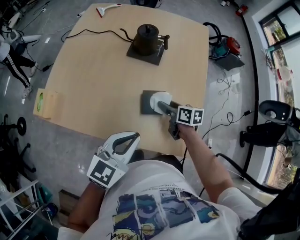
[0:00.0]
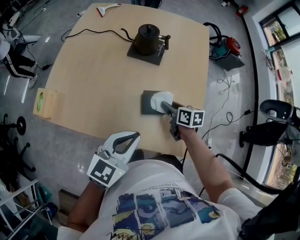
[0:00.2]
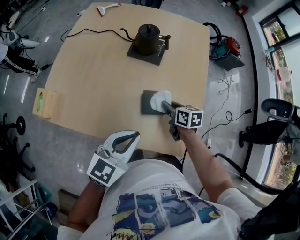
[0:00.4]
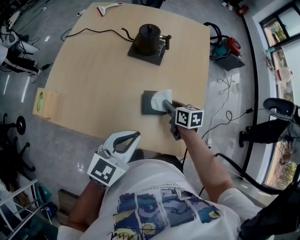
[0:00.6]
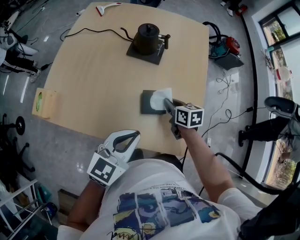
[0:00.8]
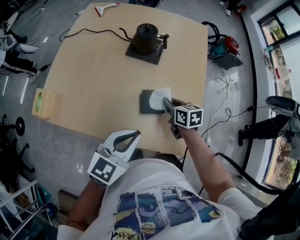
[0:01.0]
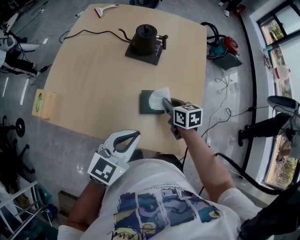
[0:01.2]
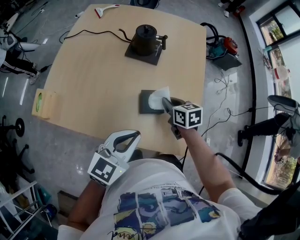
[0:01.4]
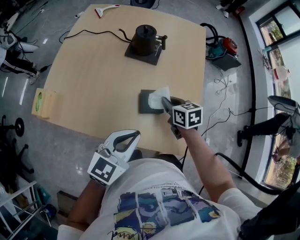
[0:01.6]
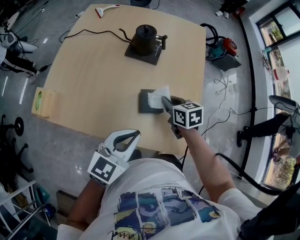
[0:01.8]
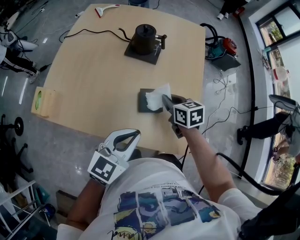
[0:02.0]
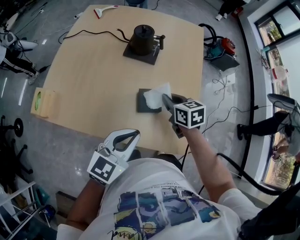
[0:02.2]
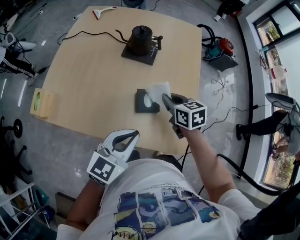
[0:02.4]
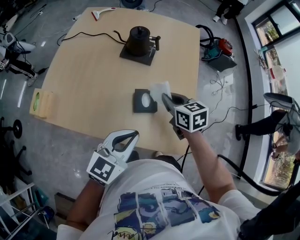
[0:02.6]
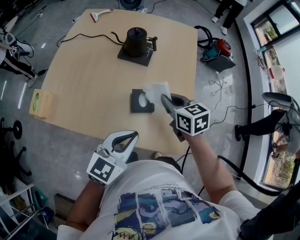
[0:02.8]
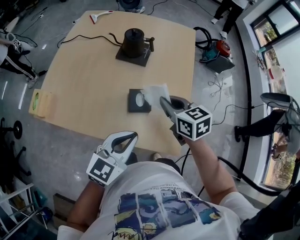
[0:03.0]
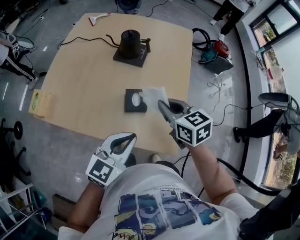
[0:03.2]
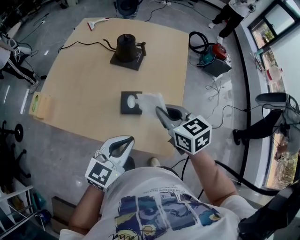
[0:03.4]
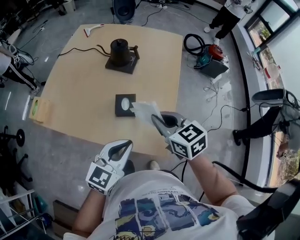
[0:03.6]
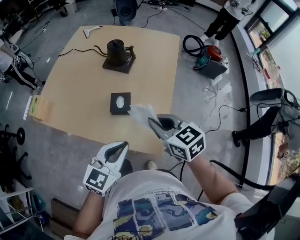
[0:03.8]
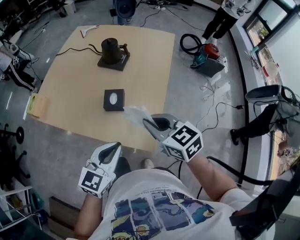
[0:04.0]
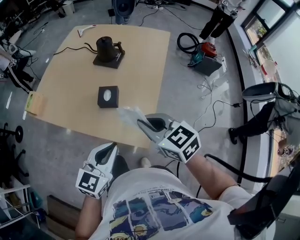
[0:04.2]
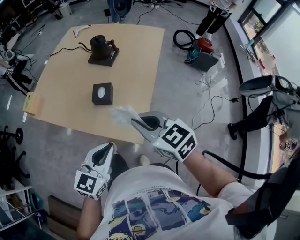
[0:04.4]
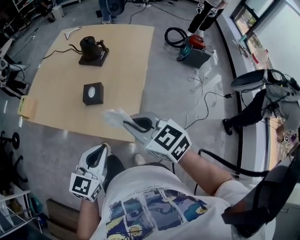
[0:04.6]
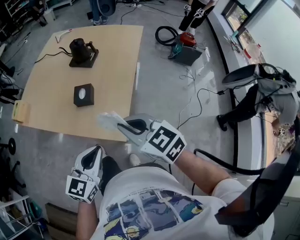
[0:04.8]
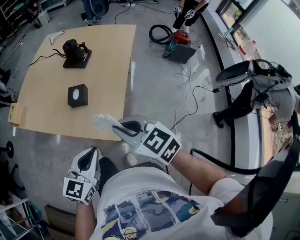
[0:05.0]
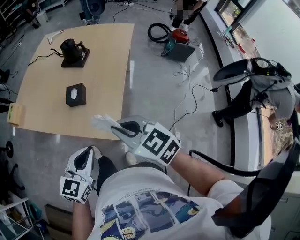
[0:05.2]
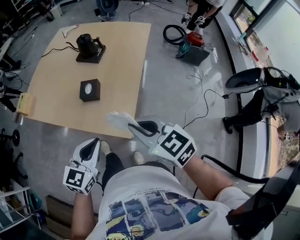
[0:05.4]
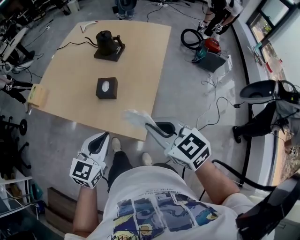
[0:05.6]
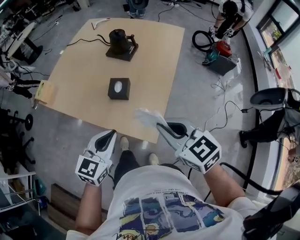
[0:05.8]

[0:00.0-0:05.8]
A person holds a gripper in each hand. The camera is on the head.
0:00.0 to 0:01.4: The right gripper swivels approximately 20 degrees, and closes its fingers.
0:01.4 to 0:02.8: The right gripper travels upward by roughly 10 cm.
0:02.8 to 0:04.4: The right gripper goes roughly 25 cm backward, to the right and upward, and changes its angle by some 30 degrees. Meanwhile the left gripper goes about 20 cm backward and to the right.
0:04.4 to 0:05.8: The left gripper moves roughly 5 cm.

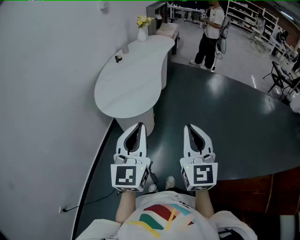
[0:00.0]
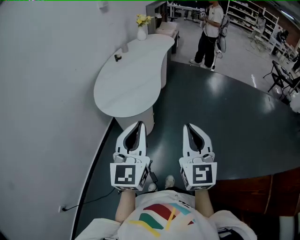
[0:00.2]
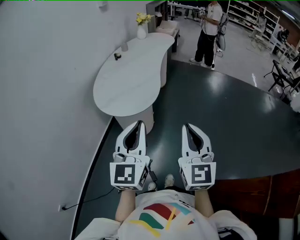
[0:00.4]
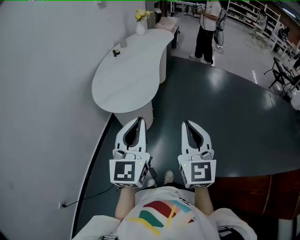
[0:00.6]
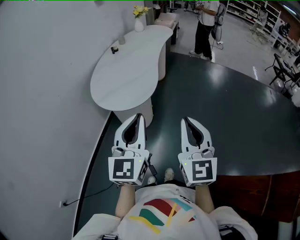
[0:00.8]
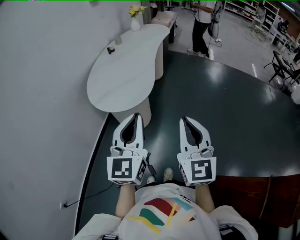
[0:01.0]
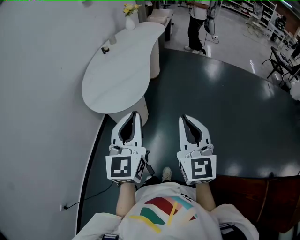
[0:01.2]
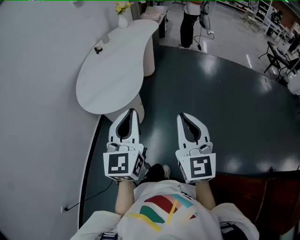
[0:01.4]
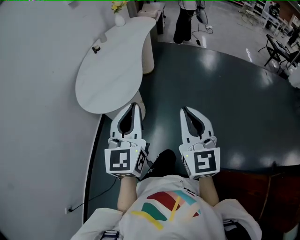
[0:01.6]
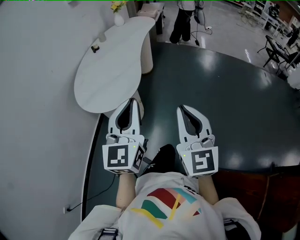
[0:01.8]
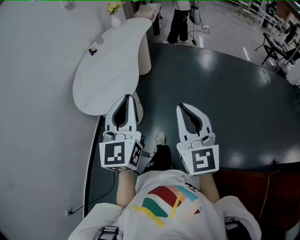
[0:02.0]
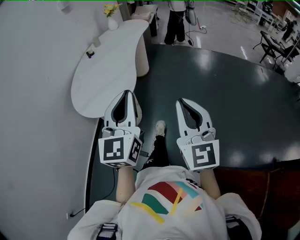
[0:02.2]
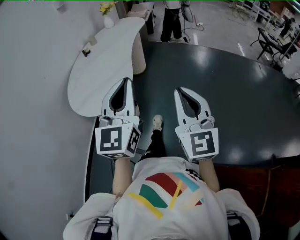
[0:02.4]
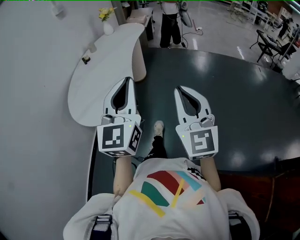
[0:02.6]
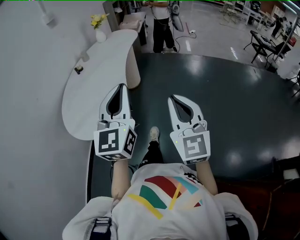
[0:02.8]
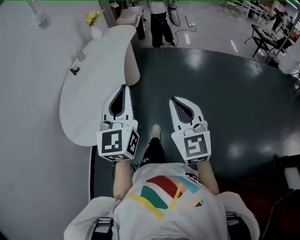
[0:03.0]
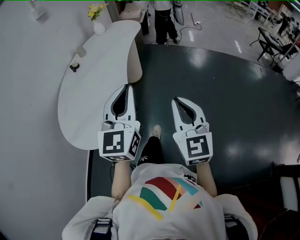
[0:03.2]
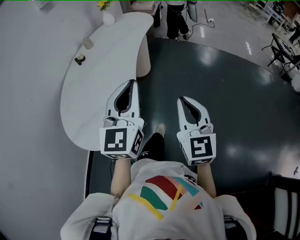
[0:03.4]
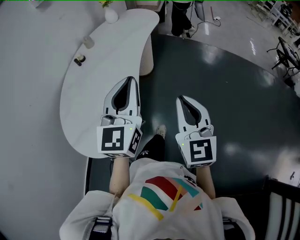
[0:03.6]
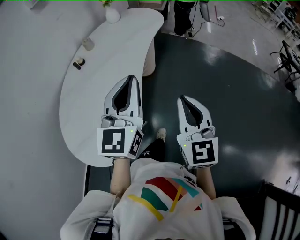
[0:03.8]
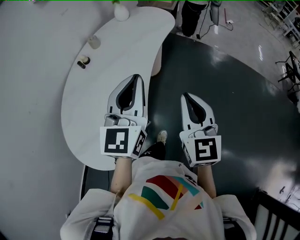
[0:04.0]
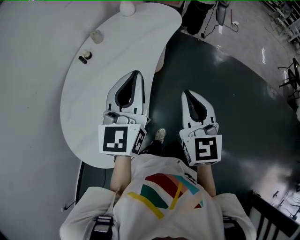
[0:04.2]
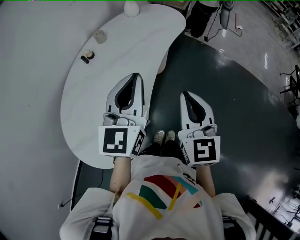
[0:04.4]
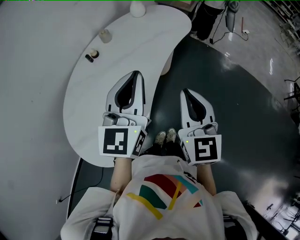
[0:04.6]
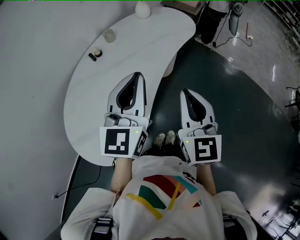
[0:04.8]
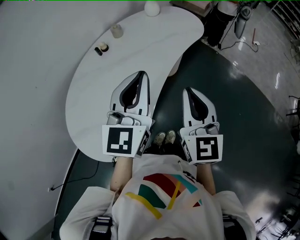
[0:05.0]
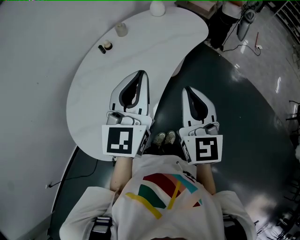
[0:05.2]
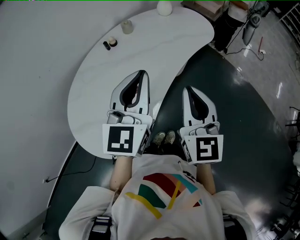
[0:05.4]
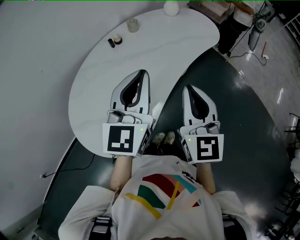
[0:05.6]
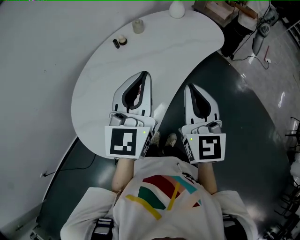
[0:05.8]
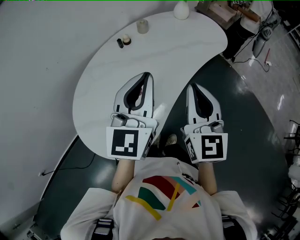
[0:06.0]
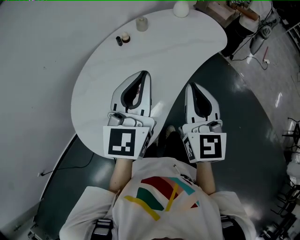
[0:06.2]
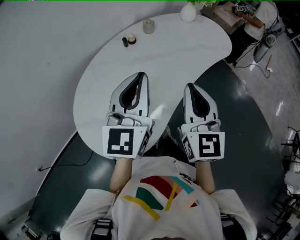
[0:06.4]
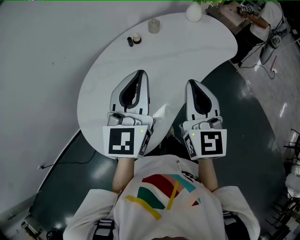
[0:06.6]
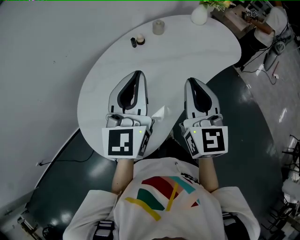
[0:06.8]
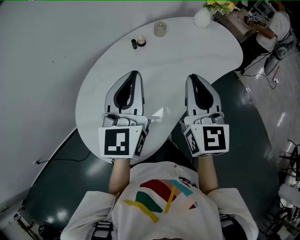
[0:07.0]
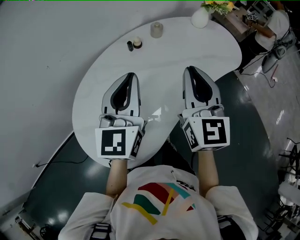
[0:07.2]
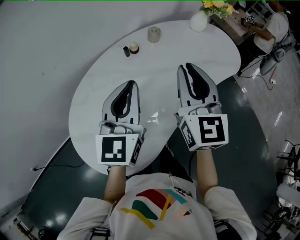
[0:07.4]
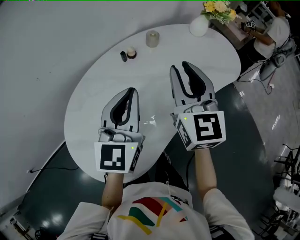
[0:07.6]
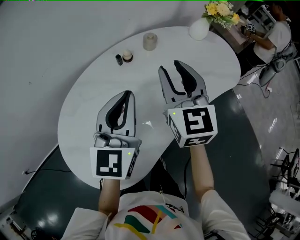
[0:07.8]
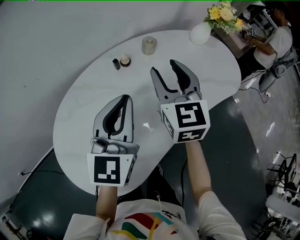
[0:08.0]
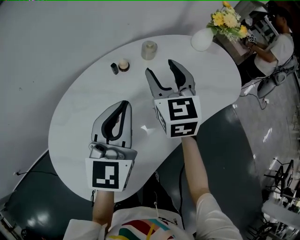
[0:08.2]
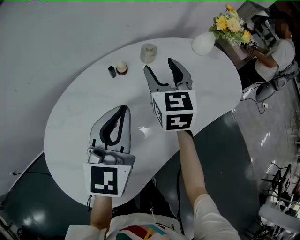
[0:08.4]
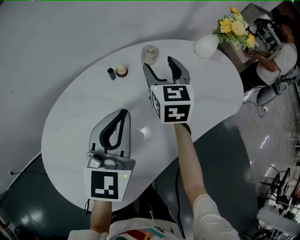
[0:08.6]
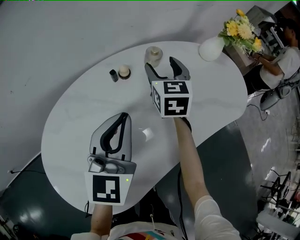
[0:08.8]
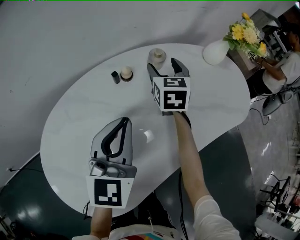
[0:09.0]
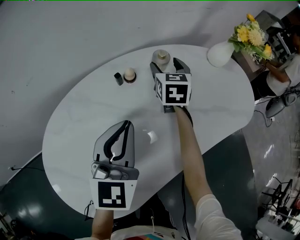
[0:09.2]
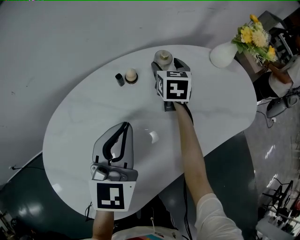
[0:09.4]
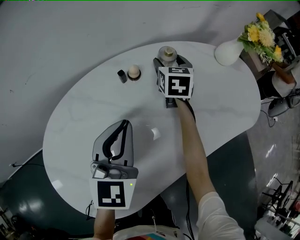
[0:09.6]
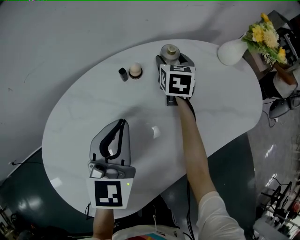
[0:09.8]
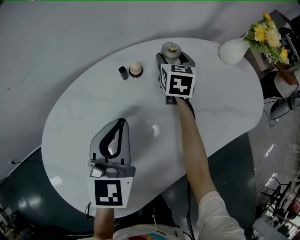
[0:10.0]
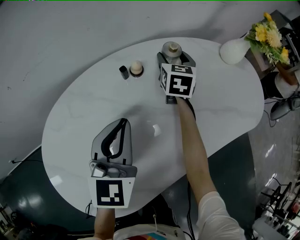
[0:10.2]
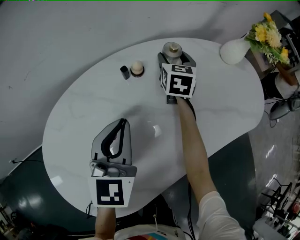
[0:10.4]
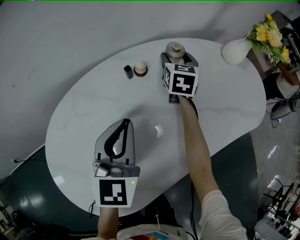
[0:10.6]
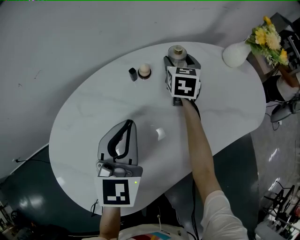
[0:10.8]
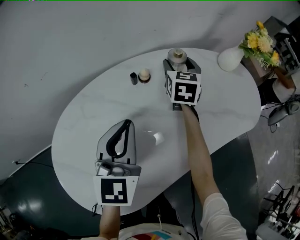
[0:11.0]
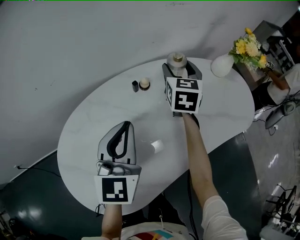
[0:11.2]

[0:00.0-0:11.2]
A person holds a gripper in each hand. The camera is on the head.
0:00.0 to 0:01.6: The left gripper heads to the right and forward, covering some 10 cm. Meanwhile the right gripper is displaced to the right by about 10 cm.
0:01.6 to 0:03.2: Both grippers travel together forward, some 25 cm.
0:03.2 to 0:04.8: Both grippers travel together forward, some 30 cm. The right gripper turns by about 20 degrees.
0:04.8 to 0:06.4: The left gripper is displaced to the left by roughly 10 cm. Meanwhile the right gripper shifts some 10 cm to the left and forward.
0:06.4 to 0:08.0: The left gripper travels forward and downward by roughly 15 cm. Meanwhile the right gripper shifts roughly 25 cm forward, and opens.
0:08.0 to 0:09.6: The left gripper moves downward, approximately 10 cm. The right gripper travels forward and downward by about 30 cm, and opens.
0:09.6 to 0:11.2: The left gripper is displaced upward by roughly 5 cm; the right gripper travels upward by approximately 15 cm.

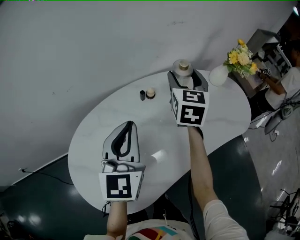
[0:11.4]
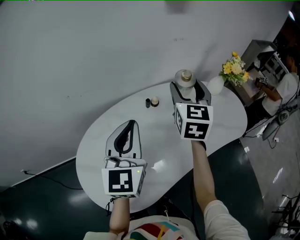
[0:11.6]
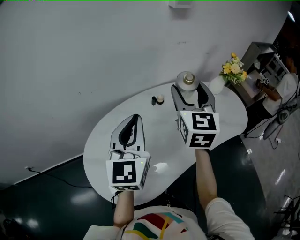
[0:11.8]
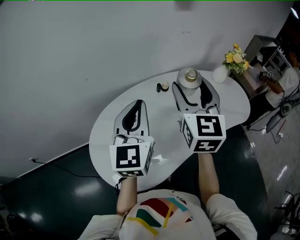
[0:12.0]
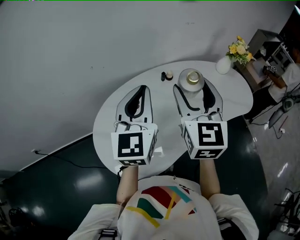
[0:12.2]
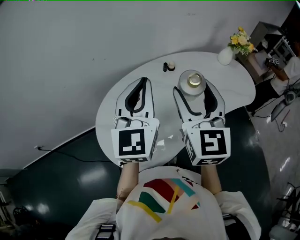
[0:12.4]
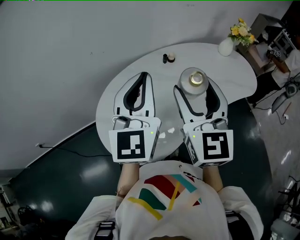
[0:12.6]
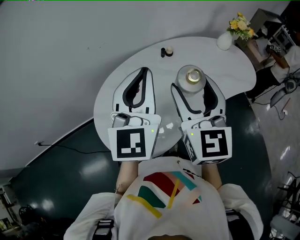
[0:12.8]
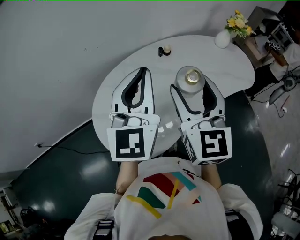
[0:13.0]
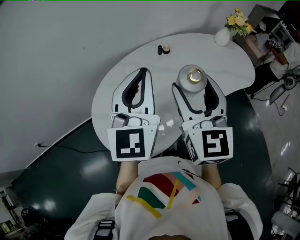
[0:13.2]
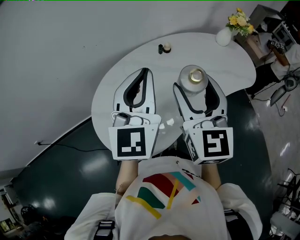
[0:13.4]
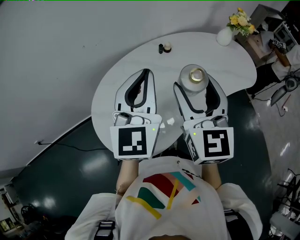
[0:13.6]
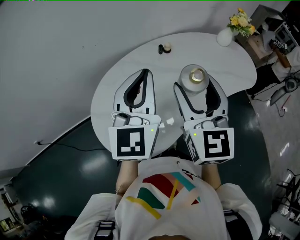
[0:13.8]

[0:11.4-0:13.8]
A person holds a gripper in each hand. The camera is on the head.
0:11.4 to 0:12.6: The left gripper shifts approximately 20 cm upward and backward; the right gripper is displaced backward and upward by roughly 35 cm.
0:12.6 to 0:13.8: The grippers move only a little.

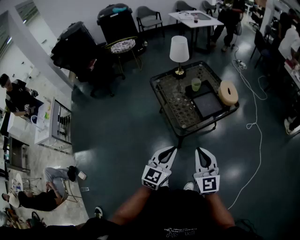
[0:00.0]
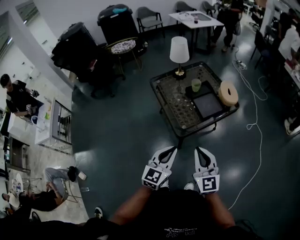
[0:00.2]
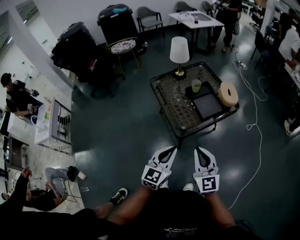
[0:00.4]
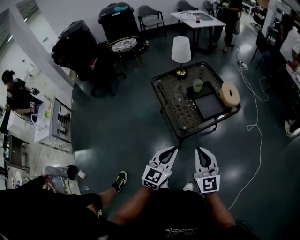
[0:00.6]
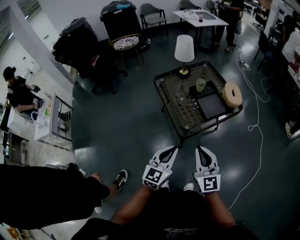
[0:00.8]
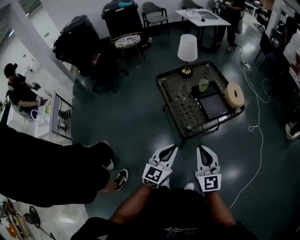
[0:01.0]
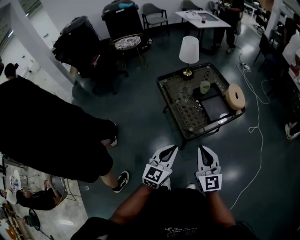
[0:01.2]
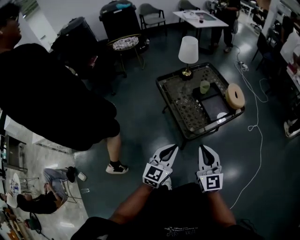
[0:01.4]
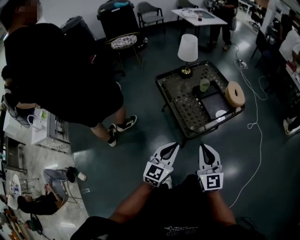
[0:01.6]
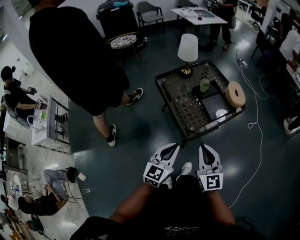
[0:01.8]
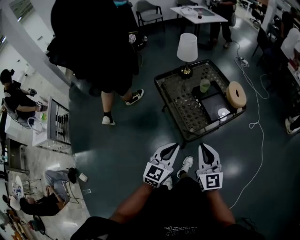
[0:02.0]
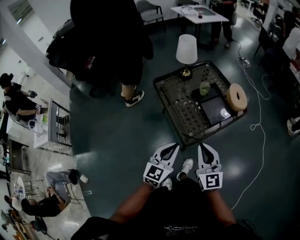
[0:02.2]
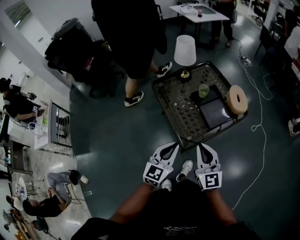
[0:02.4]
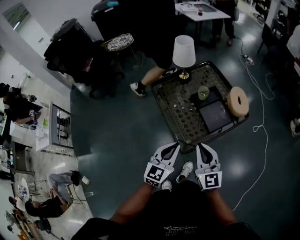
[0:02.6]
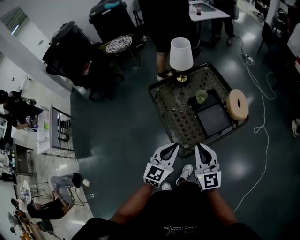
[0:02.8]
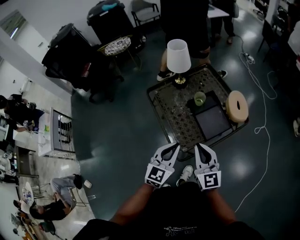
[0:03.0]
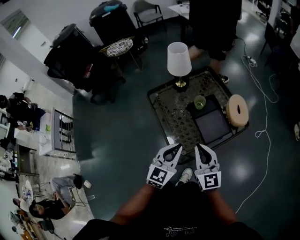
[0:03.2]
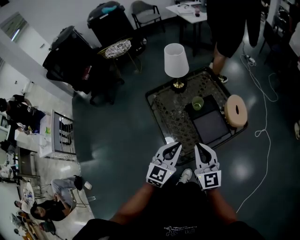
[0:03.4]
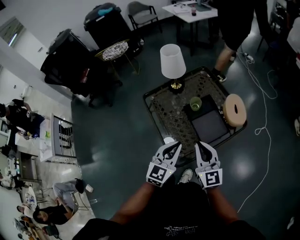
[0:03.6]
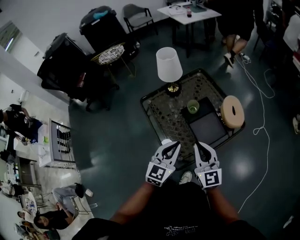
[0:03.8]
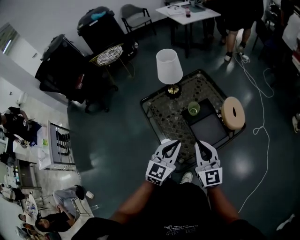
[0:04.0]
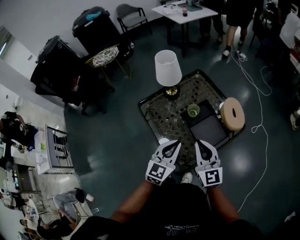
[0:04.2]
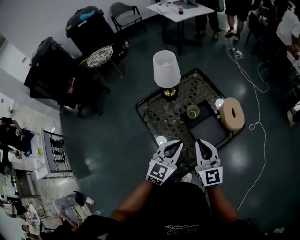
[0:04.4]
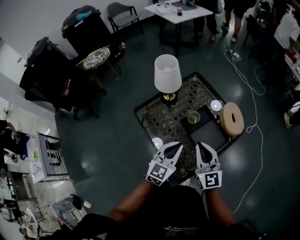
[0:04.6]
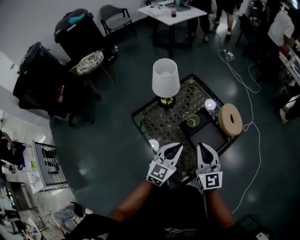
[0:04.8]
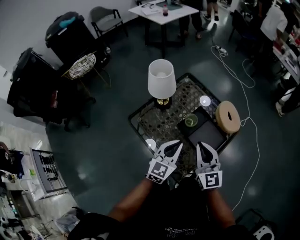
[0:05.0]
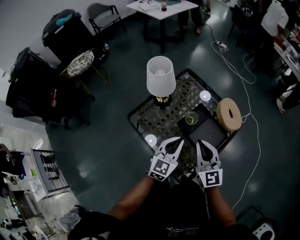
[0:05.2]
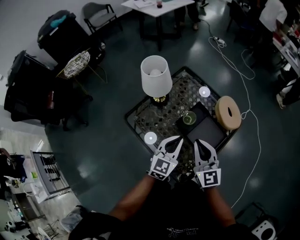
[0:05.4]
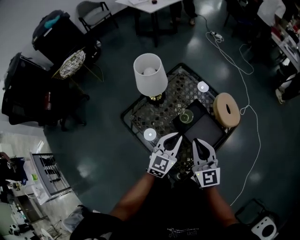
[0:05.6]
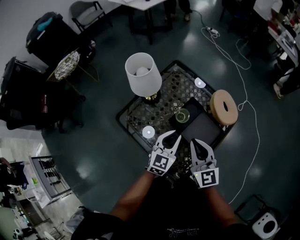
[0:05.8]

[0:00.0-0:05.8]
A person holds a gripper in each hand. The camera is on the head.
0:00.0 to 0:01.4: Both grippers travel together to the left, approximately 5 cm.
0:01.4 to 0:02.8: The grippers both shift forward by some 15 cm.
0:02.8 to 0:04.4: Both grippers travel together forward, some 15 cm.
0:04.4 to 0:05.8: The right gripper moves forward, some 5 cm; the left gripper moves forward and downward, some 15 cm.
